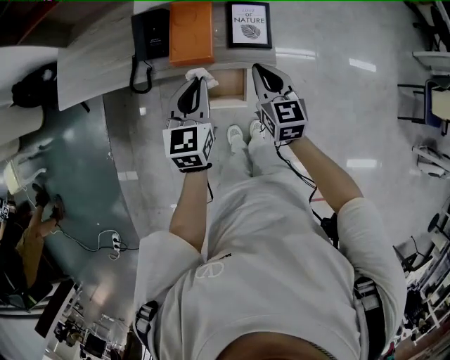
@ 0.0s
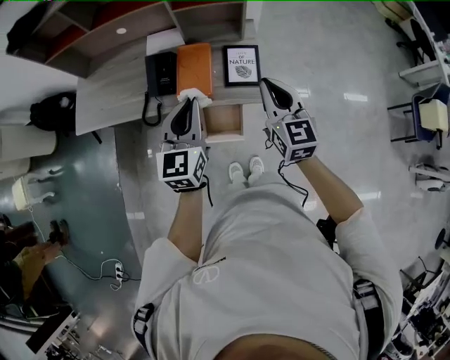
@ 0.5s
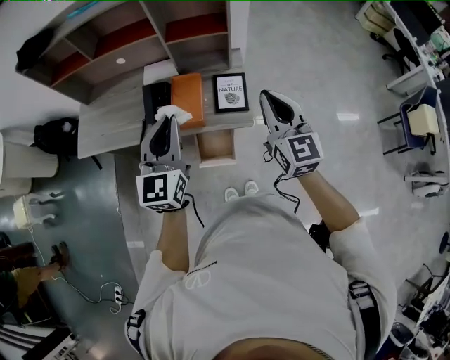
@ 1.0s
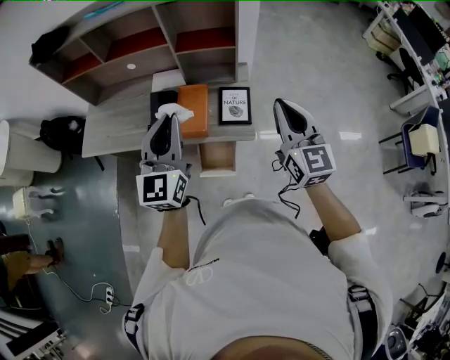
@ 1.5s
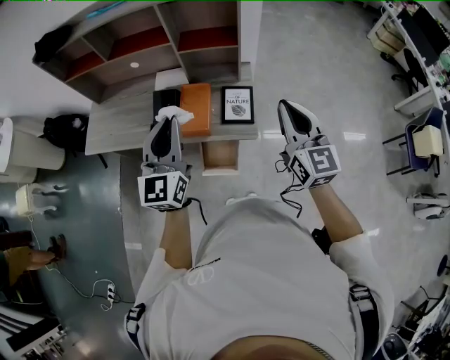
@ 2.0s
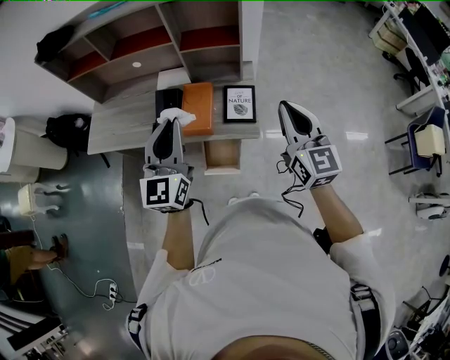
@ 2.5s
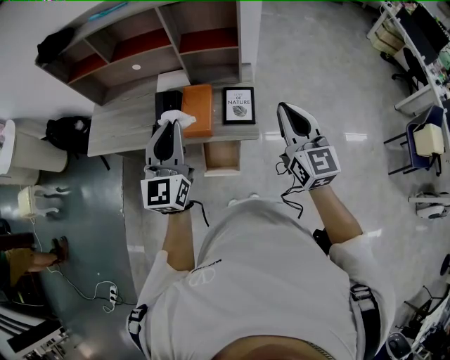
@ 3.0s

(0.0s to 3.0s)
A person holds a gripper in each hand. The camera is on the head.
0.0s - 1.5s: The two grippers go some 25 cm upward. The left gripper swivels some 30 degrees; the right gripper changes its angle by roughly 20 degrees.
1.5s - 3.0s: There are only small adjustments of the grippers.

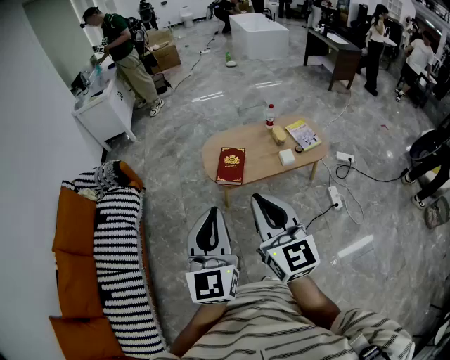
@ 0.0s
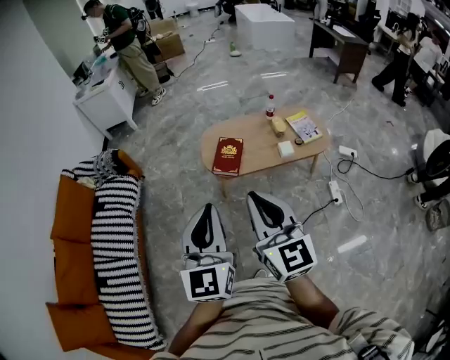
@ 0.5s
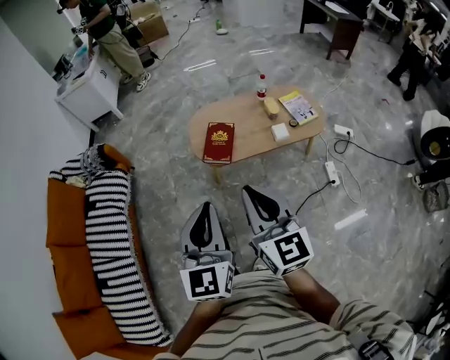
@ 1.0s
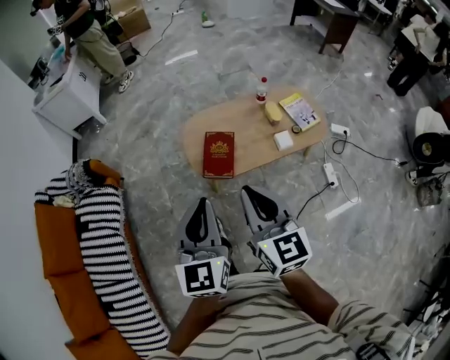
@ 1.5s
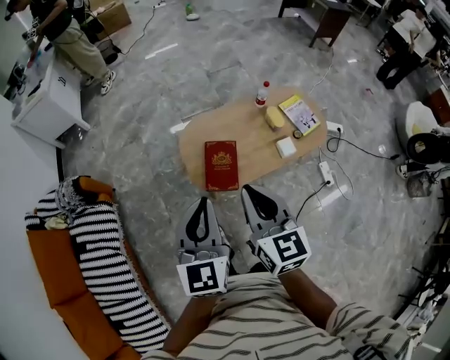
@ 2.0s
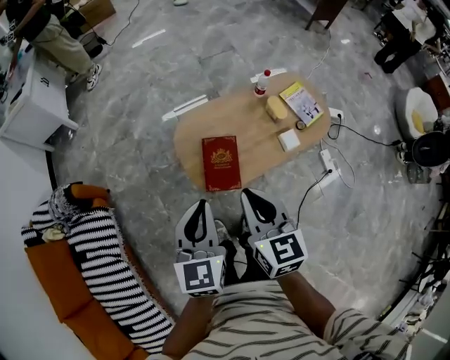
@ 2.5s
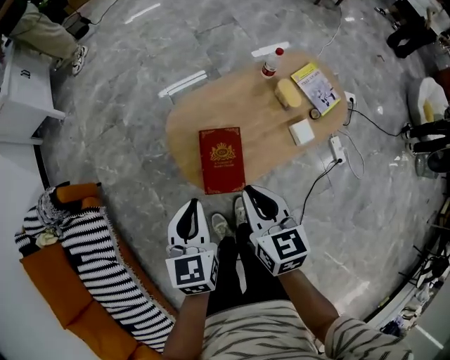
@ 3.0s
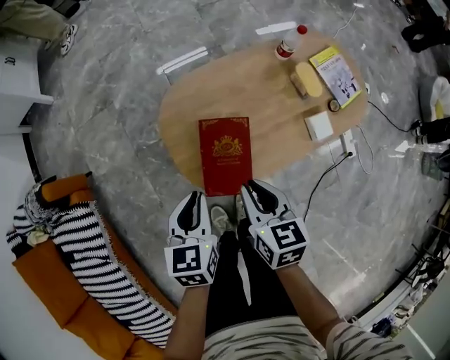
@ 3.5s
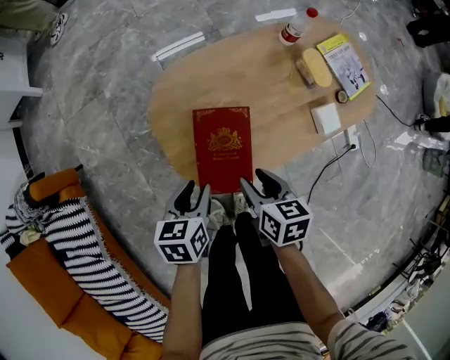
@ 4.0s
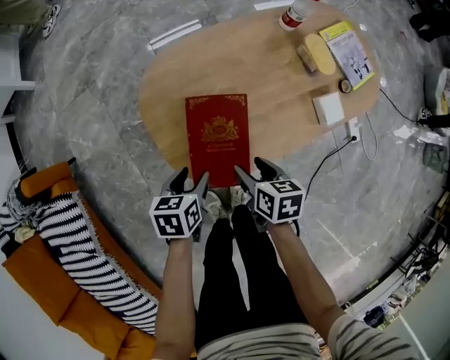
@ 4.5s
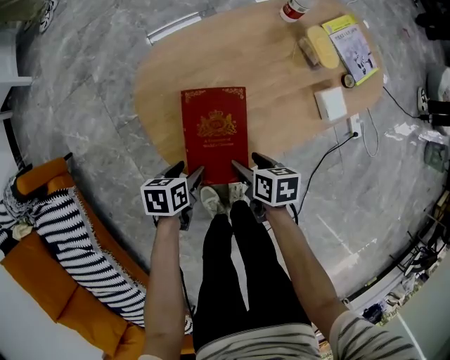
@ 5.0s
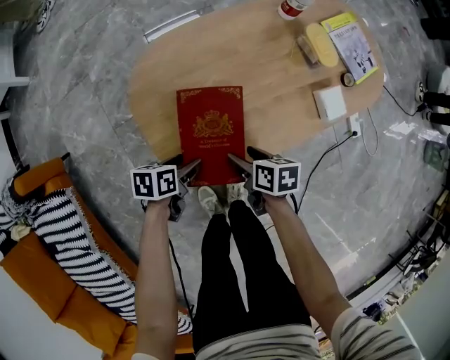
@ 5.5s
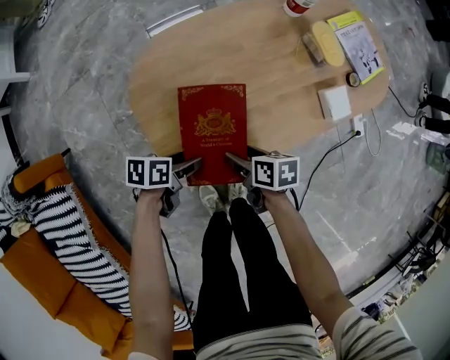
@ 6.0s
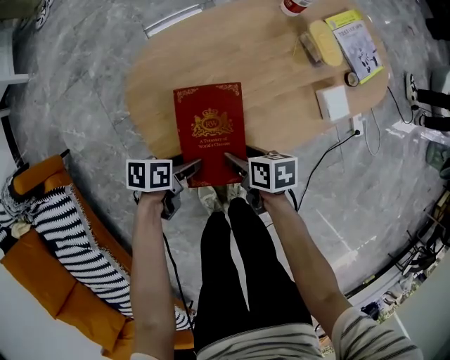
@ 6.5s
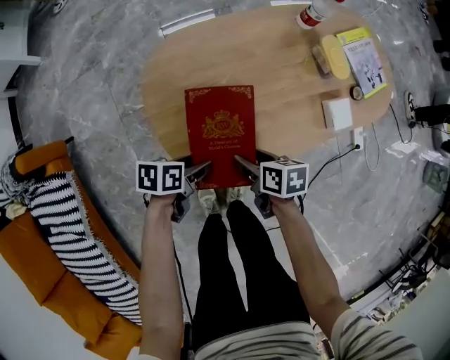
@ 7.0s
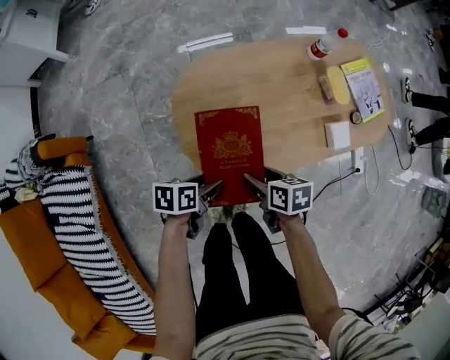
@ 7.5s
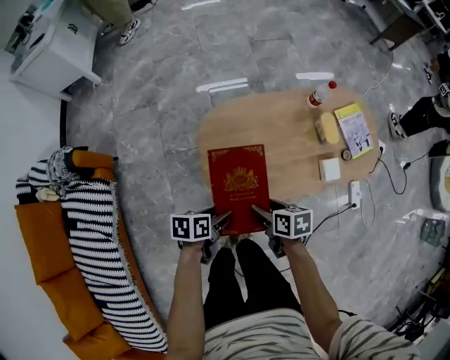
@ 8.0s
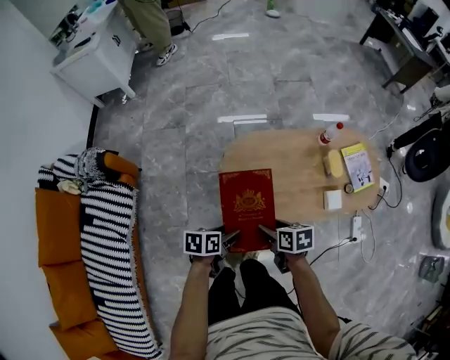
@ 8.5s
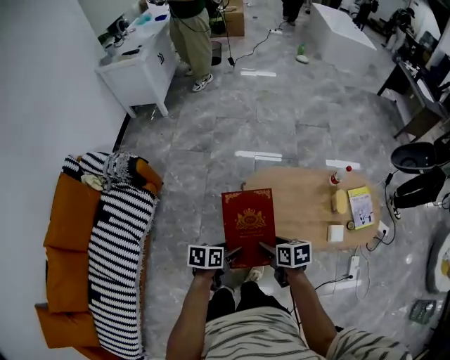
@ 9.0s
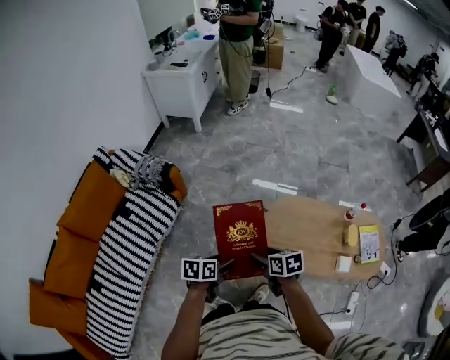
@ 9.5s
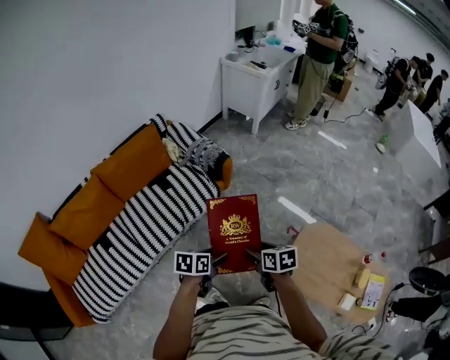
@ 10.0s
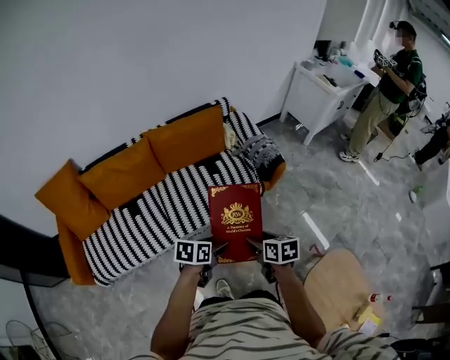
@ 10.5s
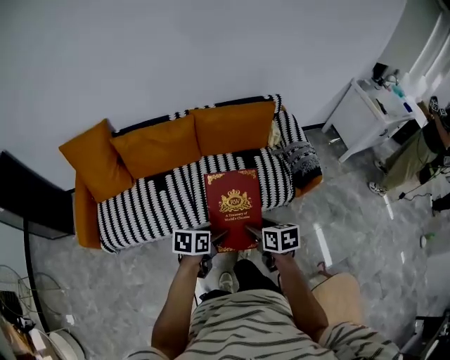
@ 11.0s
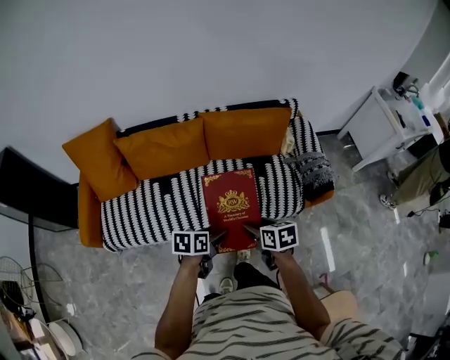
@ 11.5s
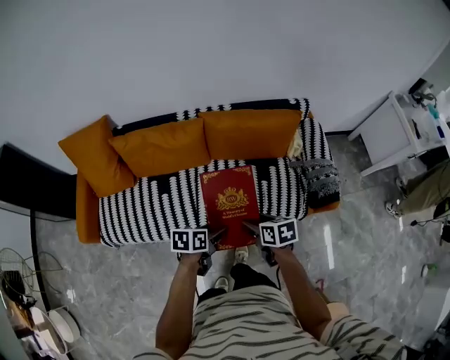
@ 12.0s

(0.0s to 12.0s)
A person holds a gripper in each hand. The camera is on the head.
0.0s - 2.0s: Both grippers move forward, approximately 35 cm. The right gripper changes its angle by some 20 degrees.
2.0s - 4.0s: Both grippers travel together downward, roughly 50 cm. The left gripper points its fingers approximately 40 degrees further downward, and opens its fingers. Meanwhile the right gripper tilts its fingers some 30 degrees downward, and opens up.
4.0s - 6.0s: Both grippers travel together downward, roughly 15 cm. The right gripper rotates about 20 degrees, and opens. The left gripper swivels about 40 degrees, and opens.
6.0s - 8.0s: The two grippers go about 20 cm upward. The left gripper changes its angle by roughly 20 degrees.
8.0s - 10.0s: Both grippers are carried roughly 40 cm. The right gripper rolls counterclockwise, seen from behind, by roughly 50 degrees; the left gripper rotates about 50 degrees.
10.0s - 12.0s: The two grippers travel together, some 40 cm. The left gripper swivels roughly 50 degrees. The right gripper changes its angle by about 50 degrees.

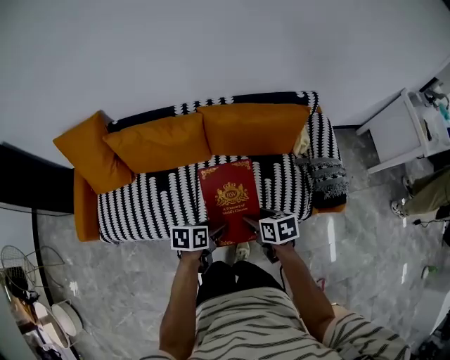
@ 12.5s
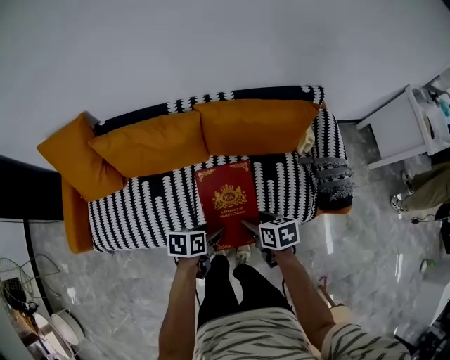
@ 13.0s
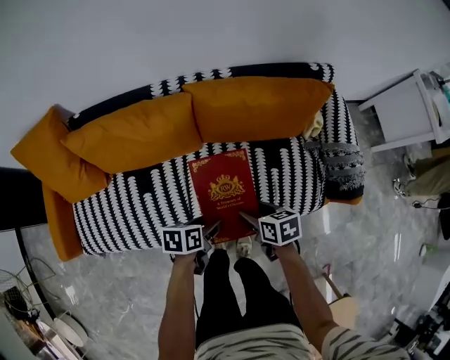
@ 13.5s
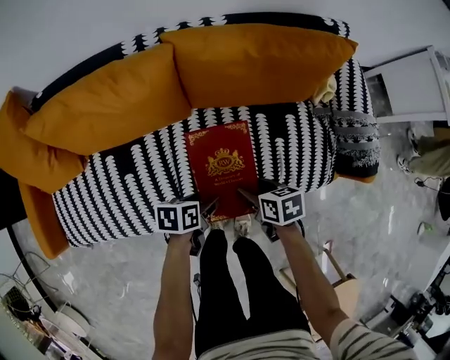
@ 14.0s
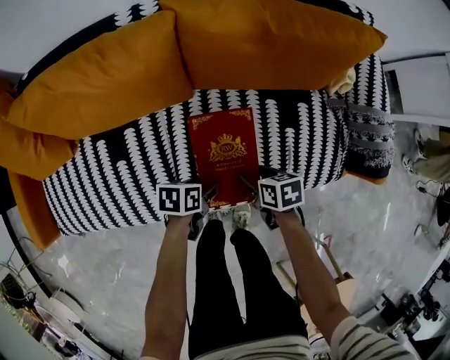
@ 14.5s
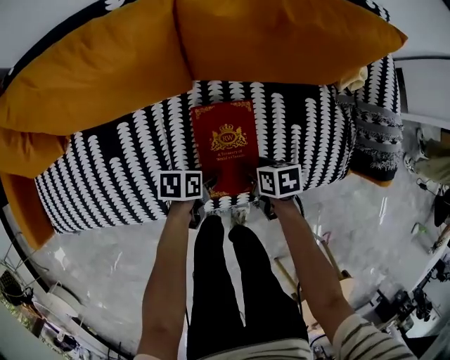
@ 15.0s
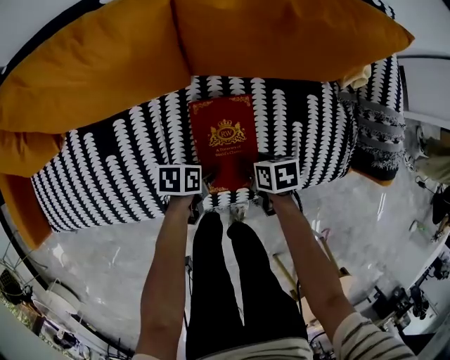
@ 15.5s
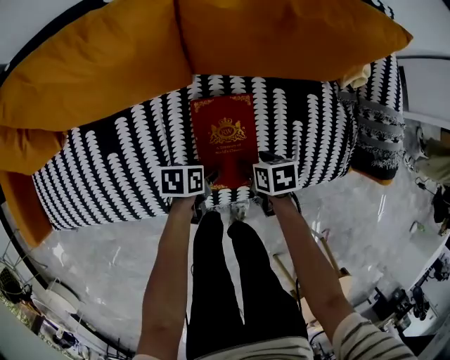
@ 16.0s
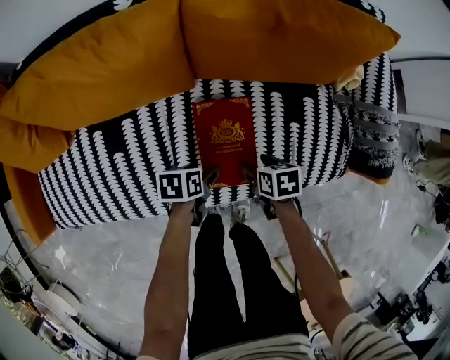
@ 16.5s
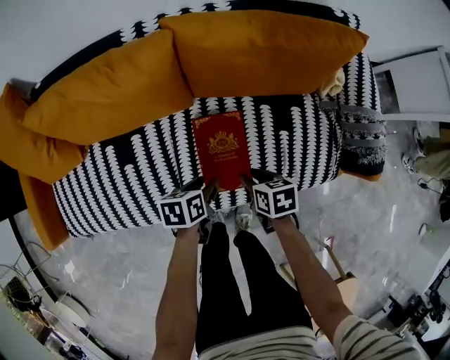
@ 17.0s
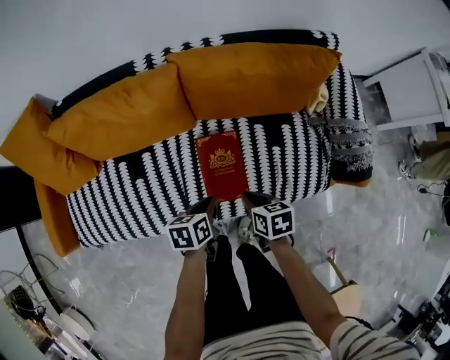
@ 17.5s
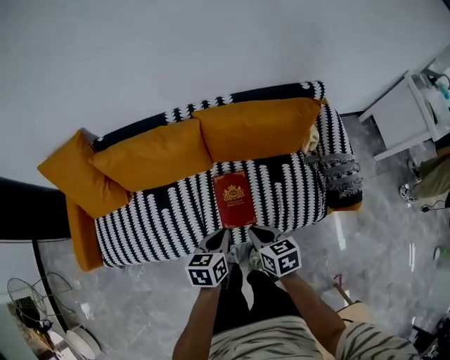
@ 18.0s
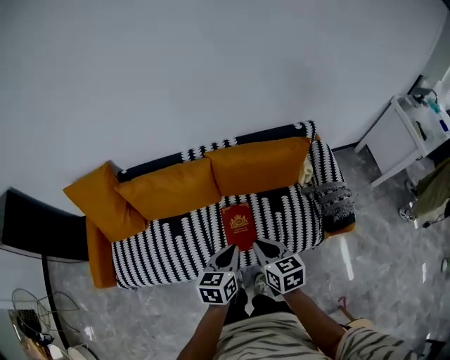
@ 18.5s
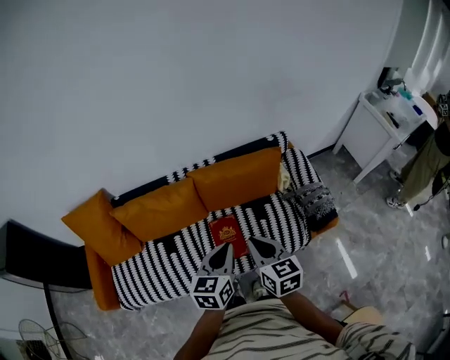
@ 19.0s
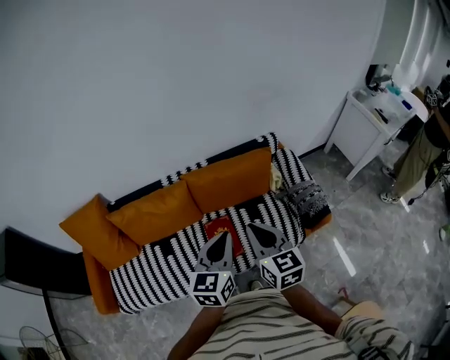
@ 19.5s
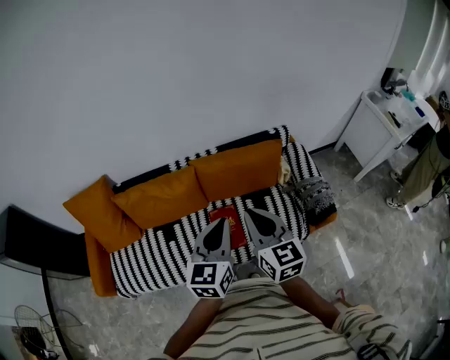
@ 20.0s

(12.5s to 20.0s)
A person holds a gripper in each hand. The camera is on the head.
12.5s - 14.5s: Both grippers travel together downward, roughly 35 cm.
16.5s - 18.0s: The grippers both shift upward by some 30 cm. The left gripper changes its angle by some 30 degrees, and closes its fingers; the right gripper turns by about 20 degrees, and closes its fingers.
18.0s - 20.0s: Both grippers move upward, some 35 cm. The left gripper tilts its fingers roughly 30 degrees upward. The right gripper points its fingers about 30 degrees further upward.

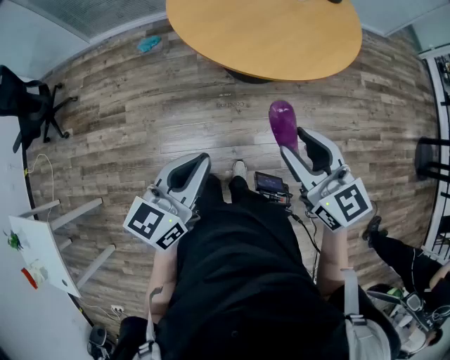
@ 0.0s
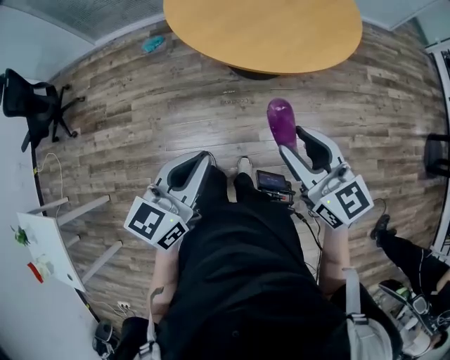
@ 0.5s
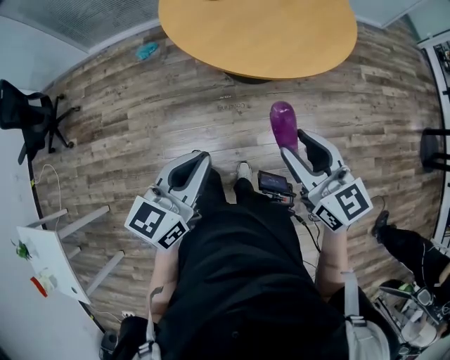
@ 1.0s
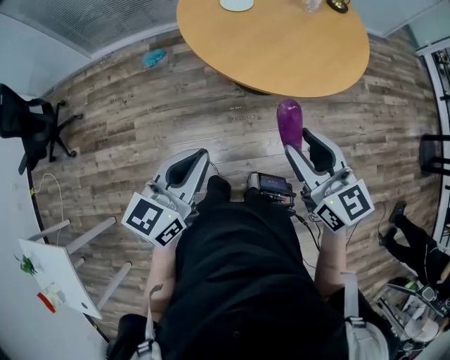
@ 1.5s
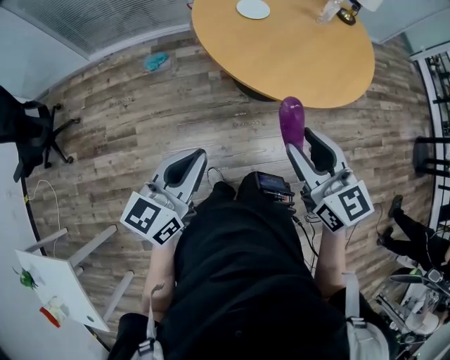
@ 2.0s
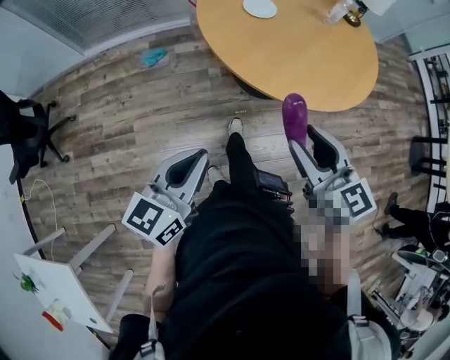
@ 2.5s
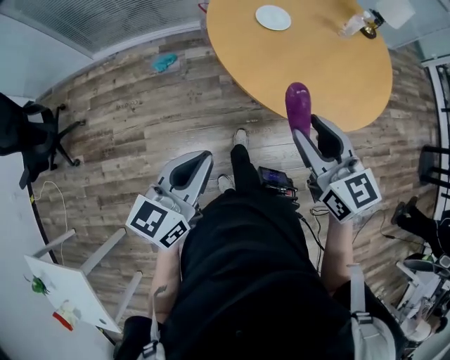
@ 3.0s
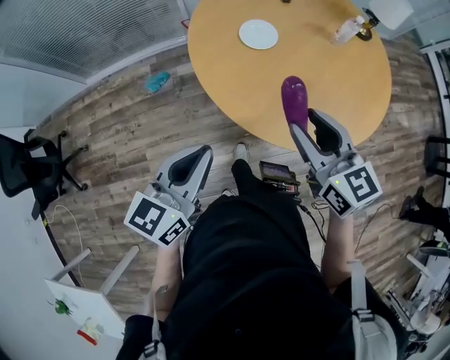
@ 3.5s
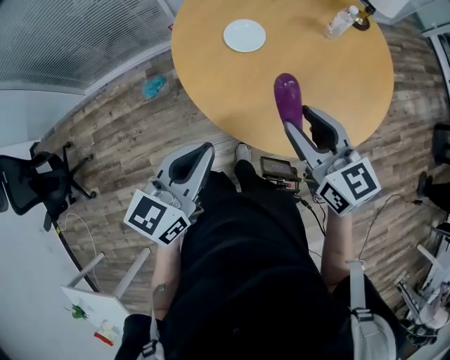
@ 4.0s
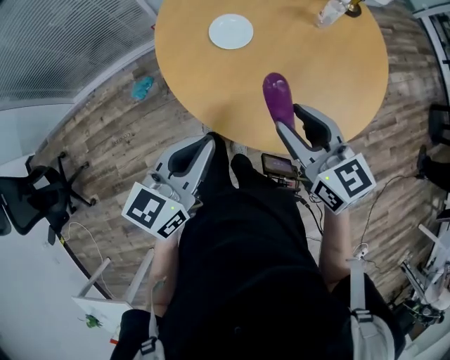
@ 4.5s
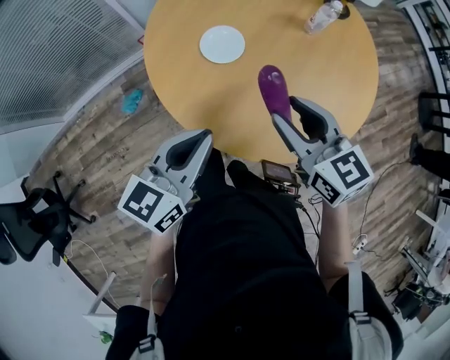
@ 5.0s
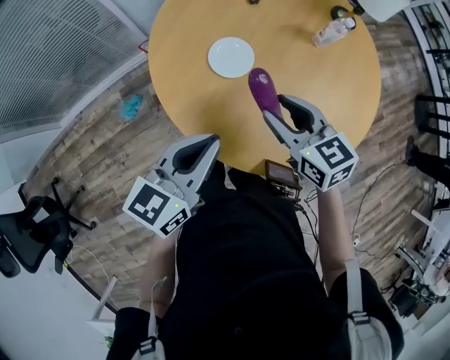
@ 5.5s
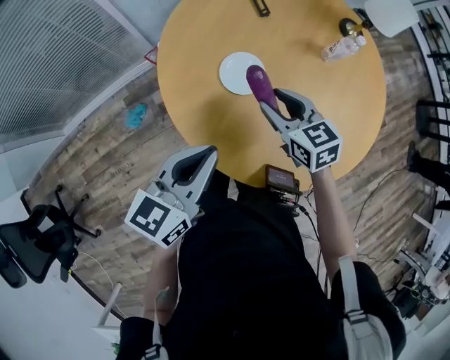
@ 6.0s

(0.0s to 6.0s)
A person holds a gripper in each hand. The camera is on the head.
0.0s - 2.0s: The grippers both shift to the left and forward by approximately 20 cm.
2.0s - 4.0s: The grippers both shift forward by roughly 30 cm.
4.0s - 6.0s: The right gripper moves forward, downward and to the left, some 25 cm, while the left gripper goes some 20 cm forward.
